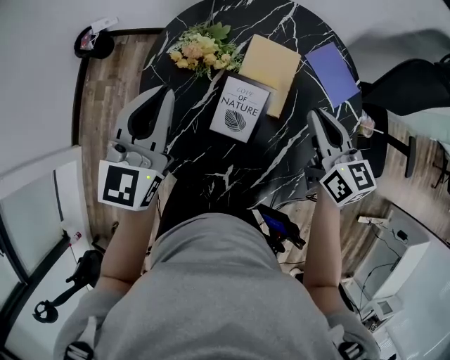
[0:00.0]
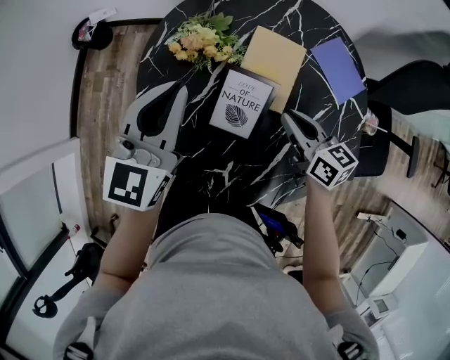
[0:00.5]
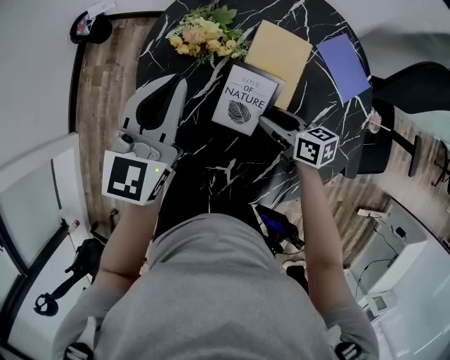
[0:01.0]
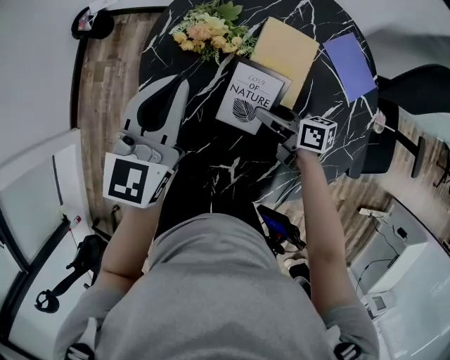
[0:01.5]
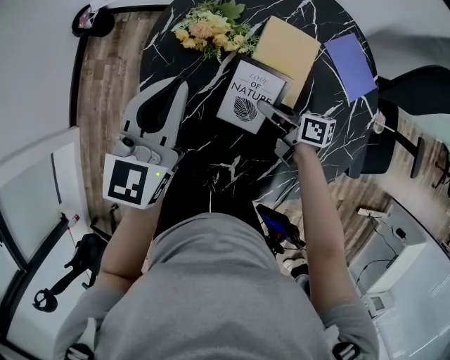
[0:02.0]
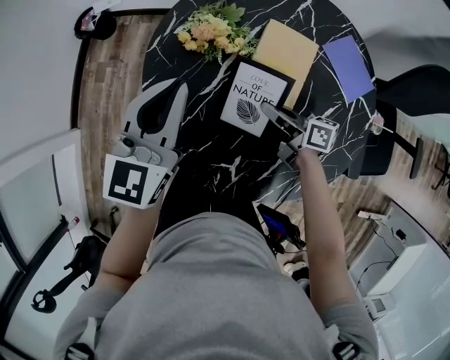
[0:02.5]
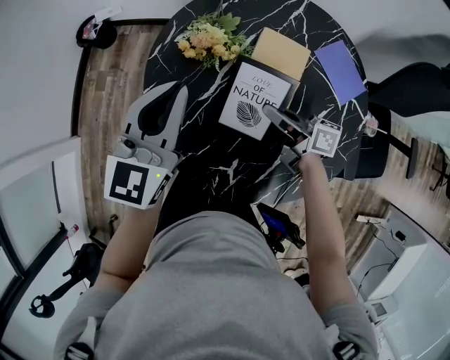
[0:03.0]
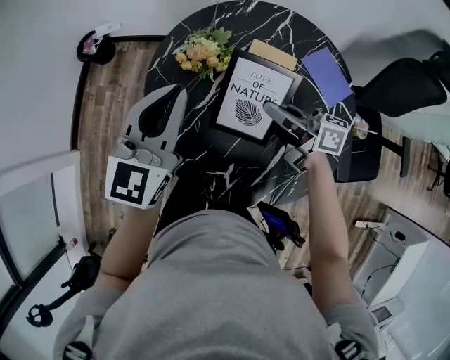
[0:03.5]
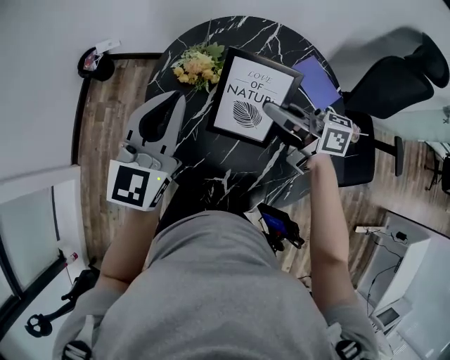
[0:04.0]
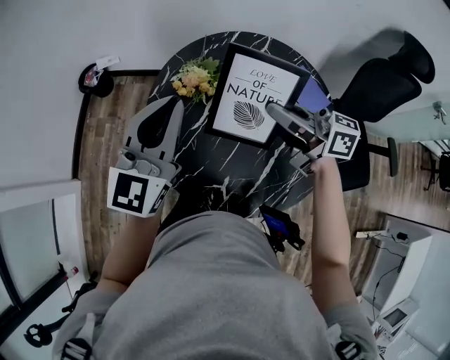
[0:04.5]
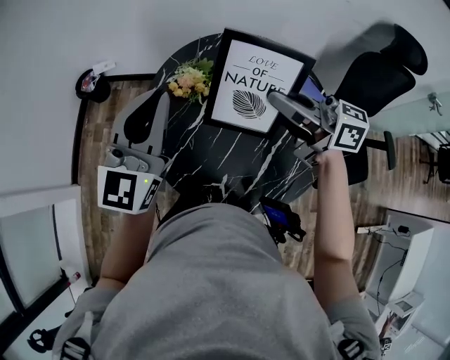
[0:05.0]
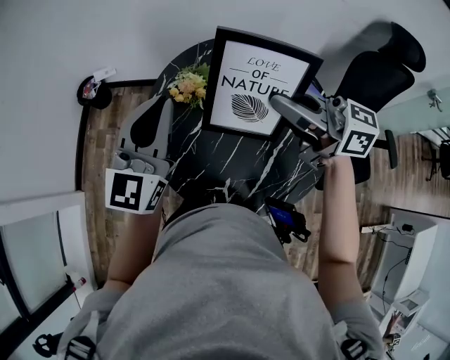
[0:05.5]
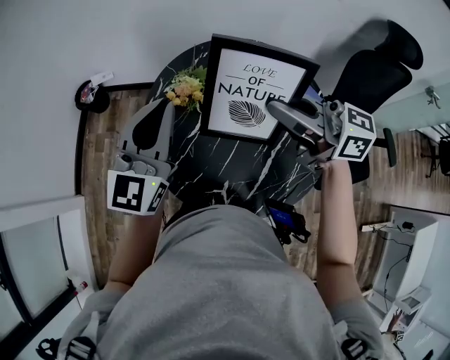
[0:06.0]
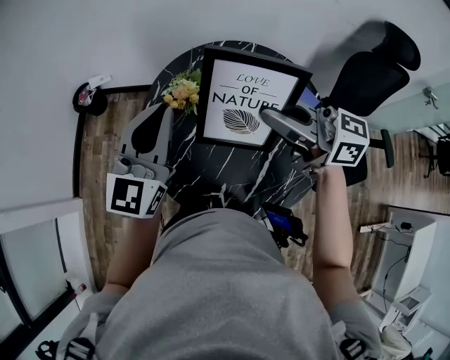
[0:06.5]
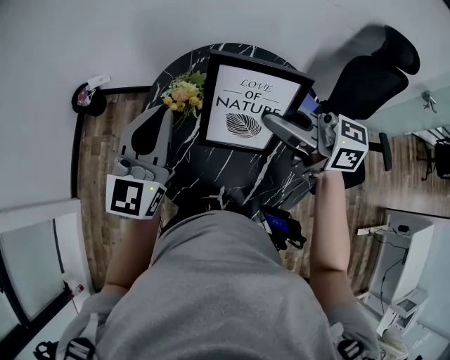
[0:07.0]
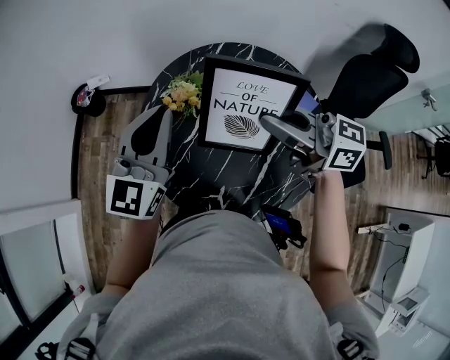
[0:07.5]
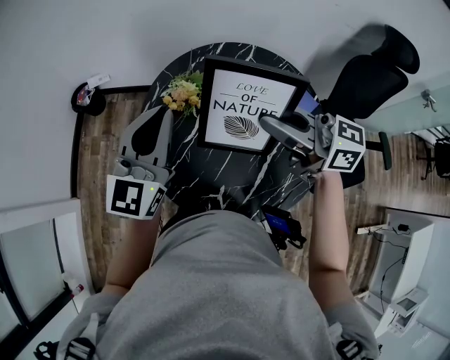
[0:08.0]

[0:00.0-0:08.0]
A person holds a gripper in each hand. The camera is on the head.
0.0 to 2.0 s: The right gripper moves downward and to the left, about 20 cm, twists about 40 degrees clockwise, seen from behind, and opens, then closes again.
2.0 to 4.0 s: The right gripper travels upward by about 25 cm, and changes its angle by approximately 30 degrees. Meanwhile the left gripper heads upward, covering some 10 cm.
4.0 to 6.0 s: The right gripper is displaced upward by about 15 cm, and rotates about 20 degrees.
6.0 to 8.0 s: The two grippers keep their place.

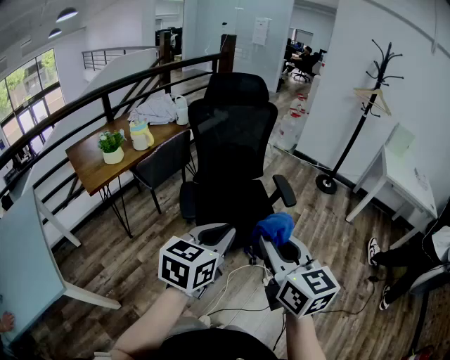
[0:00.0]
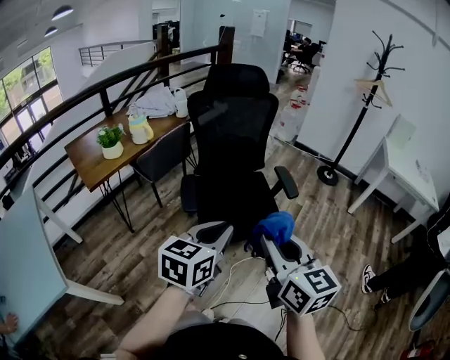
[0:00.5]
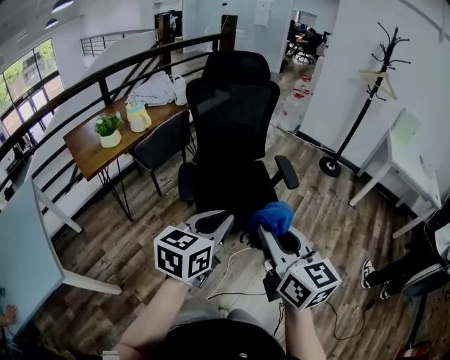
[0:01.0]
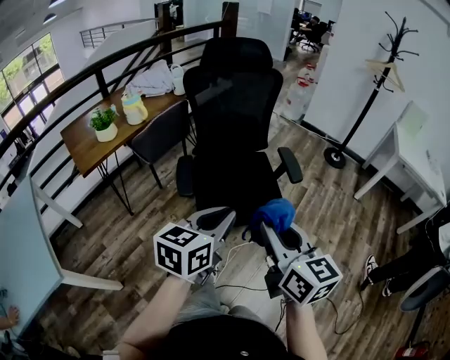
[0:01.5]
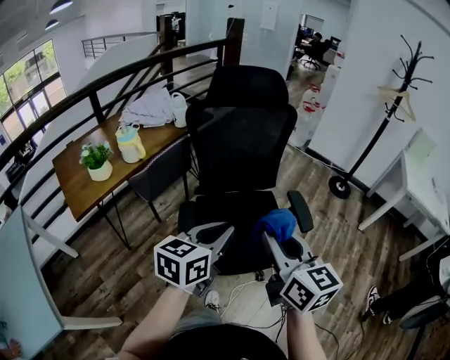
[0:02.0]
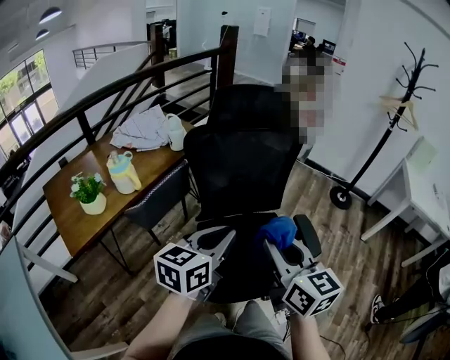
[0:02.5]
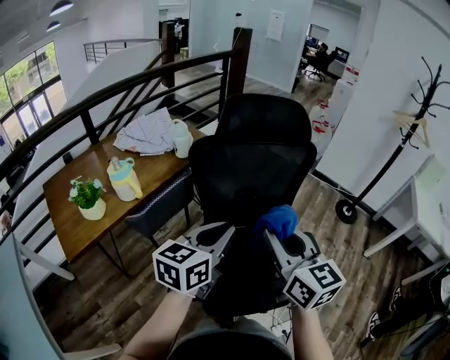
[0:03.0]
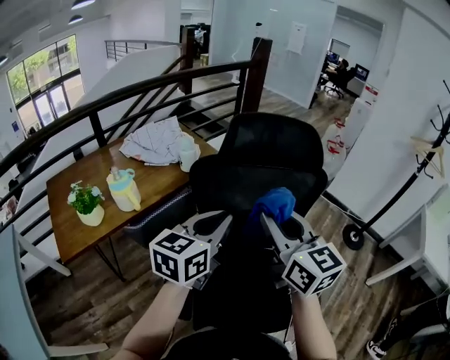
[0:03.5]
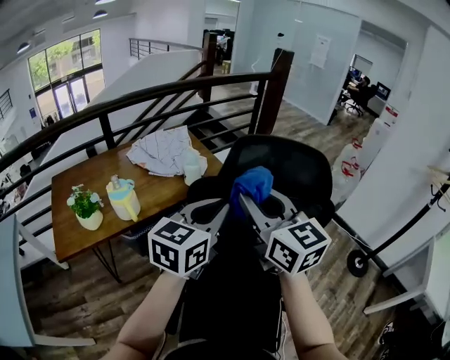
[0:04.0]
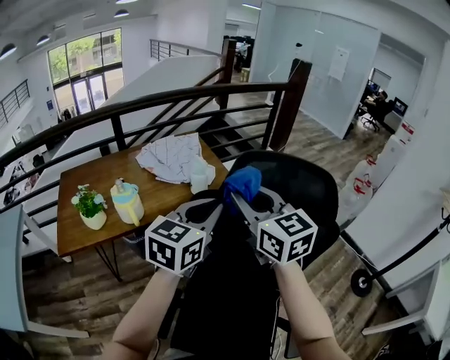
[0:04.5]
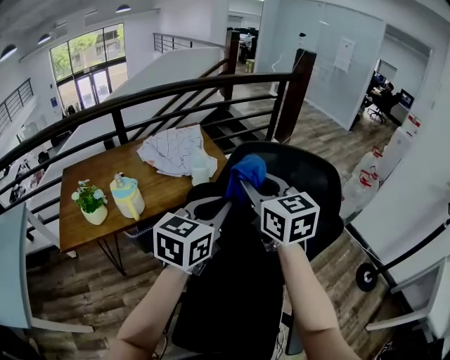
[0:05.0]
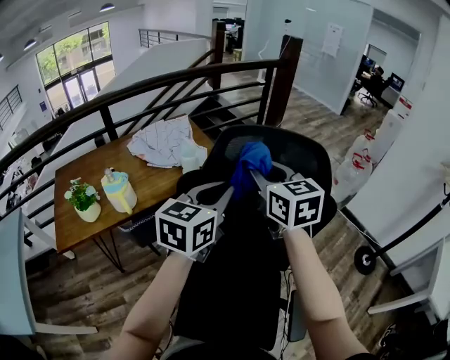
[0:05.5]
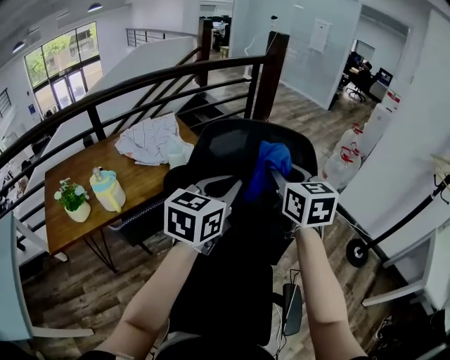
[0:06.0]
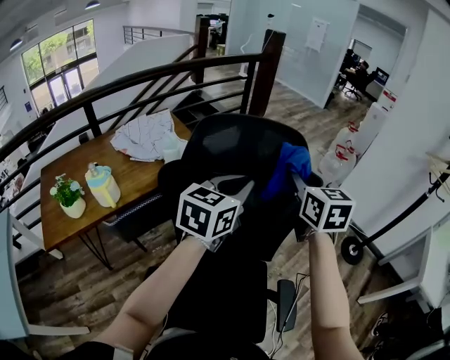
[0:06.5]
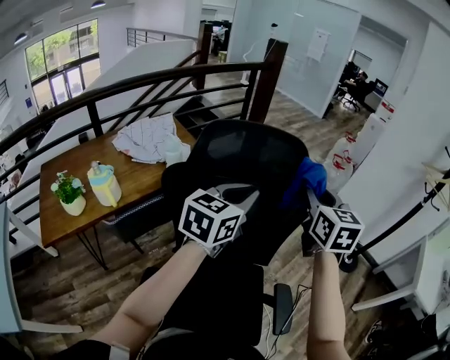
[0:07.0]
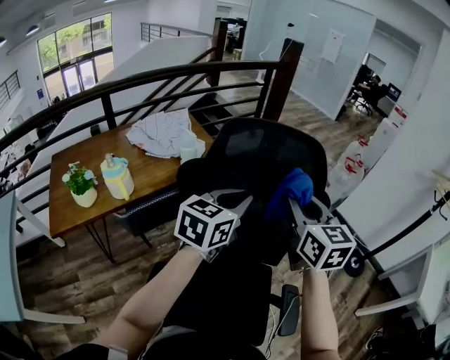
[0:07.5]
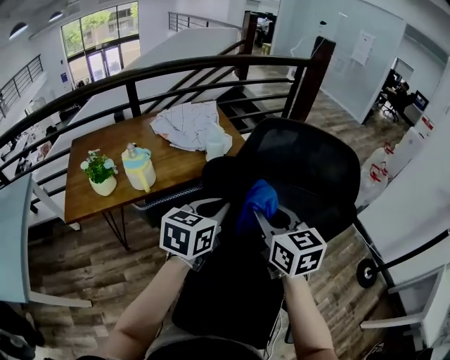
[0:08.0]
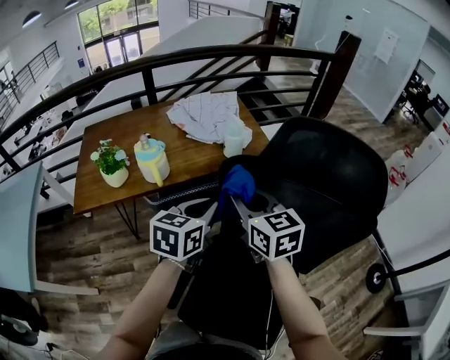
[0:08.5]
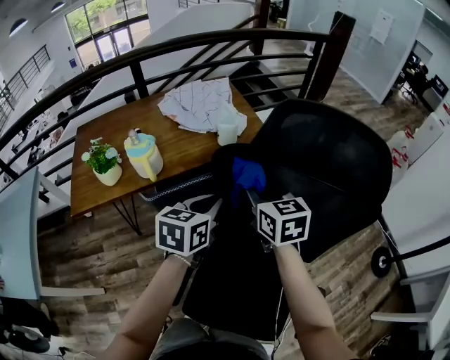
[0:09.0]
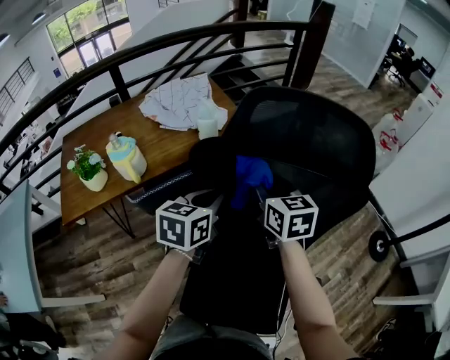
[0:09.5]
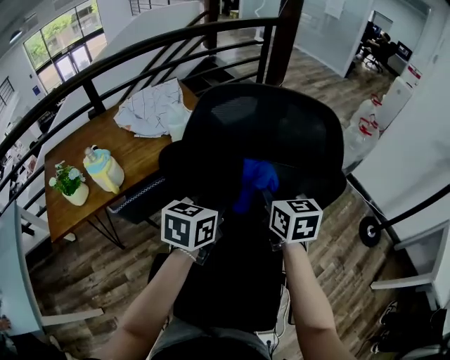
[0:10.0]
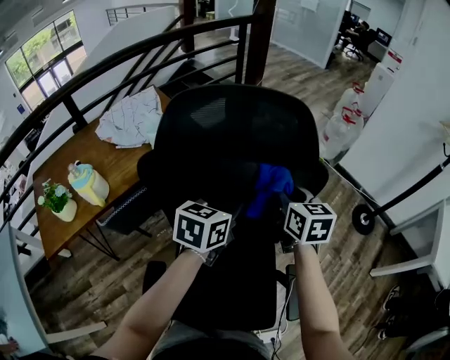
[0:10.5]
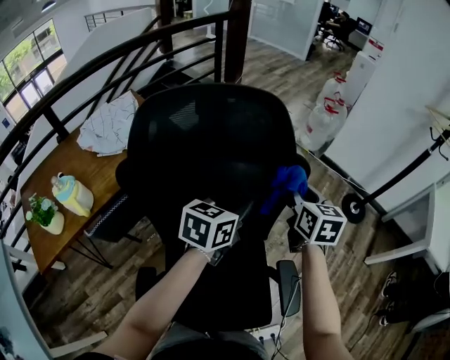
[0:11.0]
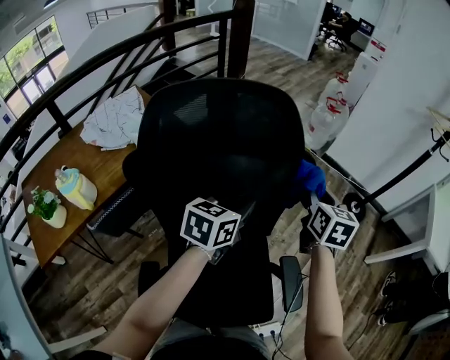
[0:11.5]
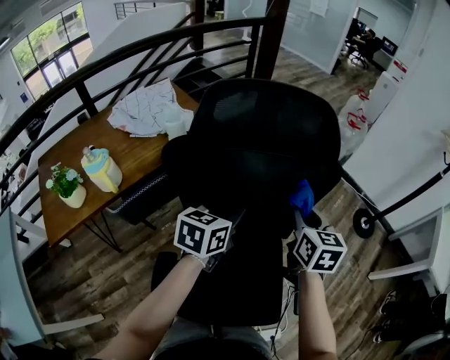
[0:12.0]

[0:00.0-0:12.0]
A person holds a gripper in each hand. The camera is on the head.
0.0 to 2.0 s: The grippers both shift forward by some 20 cm.
2.0 to 4.0 s: The grippers both shift forward by approximately 40 cm. The right gripper changes its angle by approximately 30 degrees, while the left gripper rotates about 20 degrees.
4.0 to 6.0 s: The right gripper heads to the right and forward, covering about 20 cm, and swivels approximately 20 degrees, while the left gripper shifts approximately 10 cm to the right and forward.
6.0 to 8.0 s: The right gripper moves about 20 cm. Meanwhile the left gripper changes place by roughly 15 cm.
8.0 to 10.0 s: The left gripper shifts about 10 cm to the right and downward. Meanwhile the right gripper moves to the right, downward and forward, approximately 15 cm.

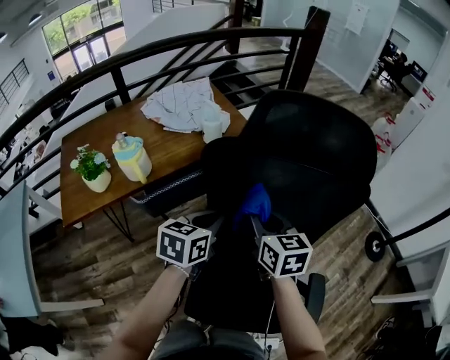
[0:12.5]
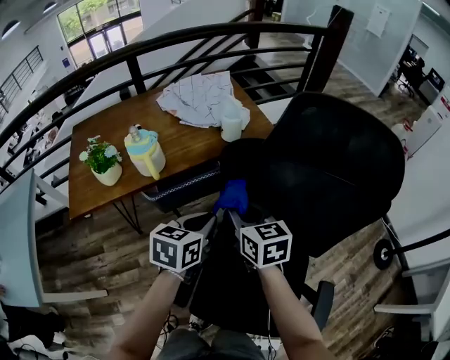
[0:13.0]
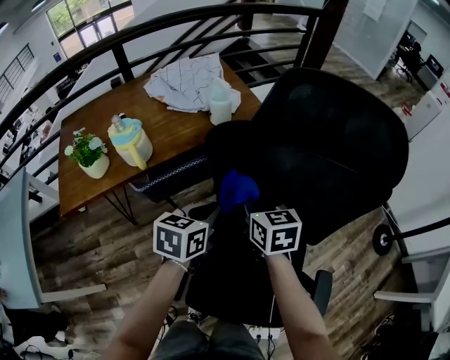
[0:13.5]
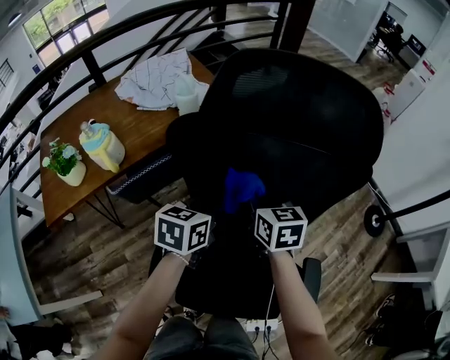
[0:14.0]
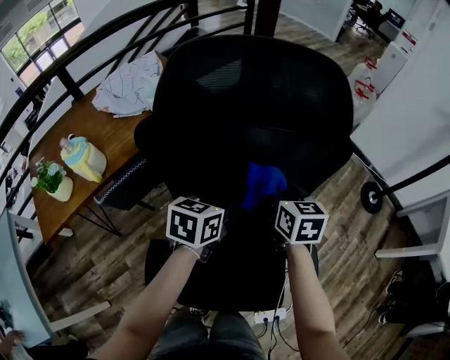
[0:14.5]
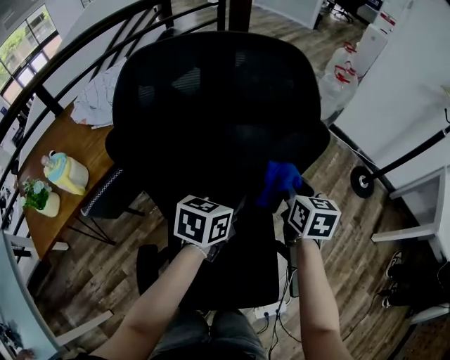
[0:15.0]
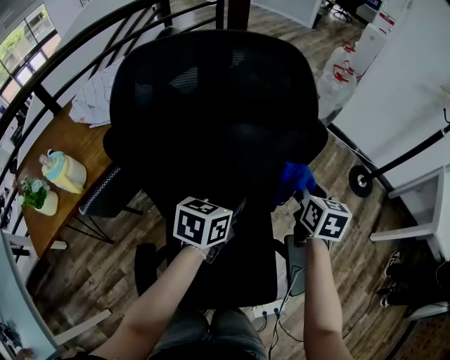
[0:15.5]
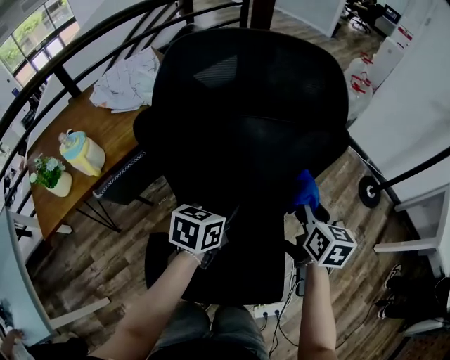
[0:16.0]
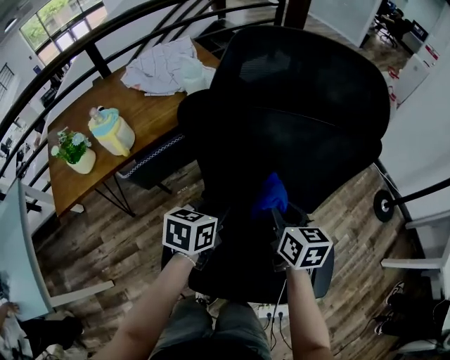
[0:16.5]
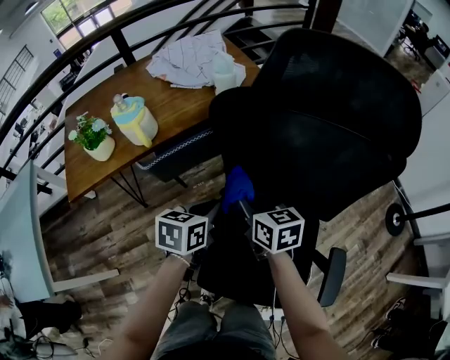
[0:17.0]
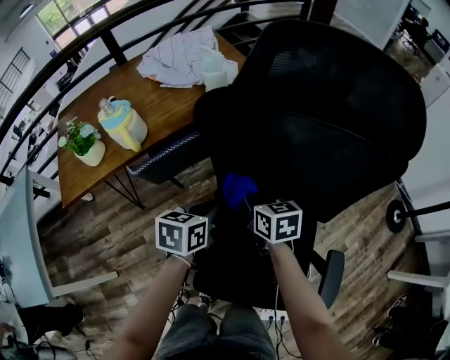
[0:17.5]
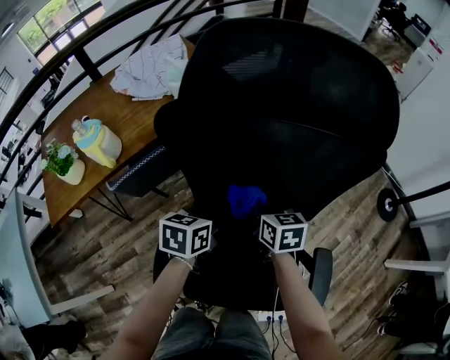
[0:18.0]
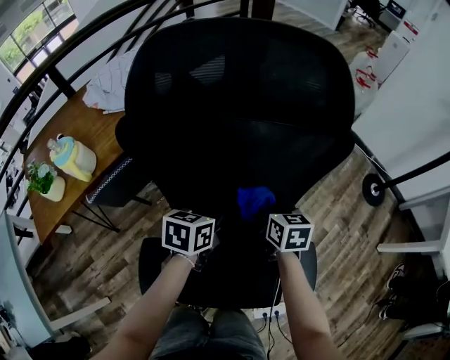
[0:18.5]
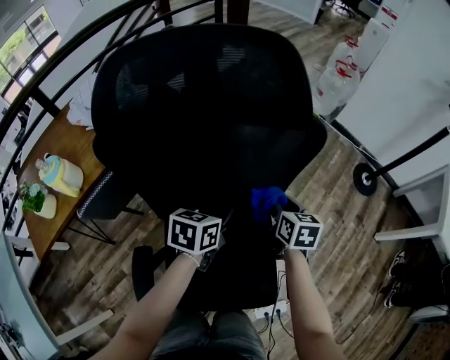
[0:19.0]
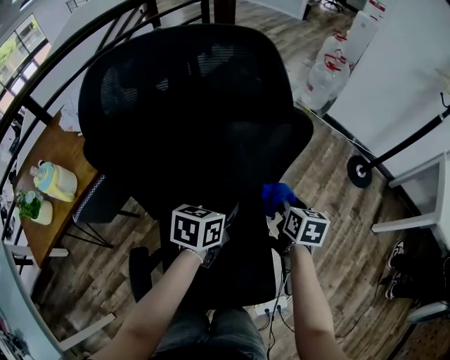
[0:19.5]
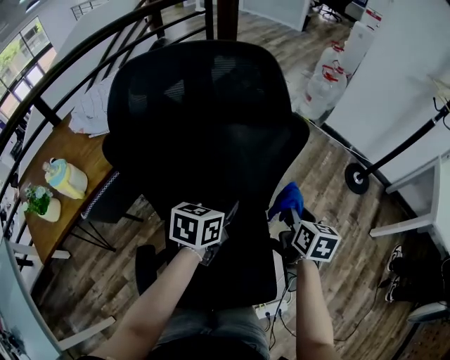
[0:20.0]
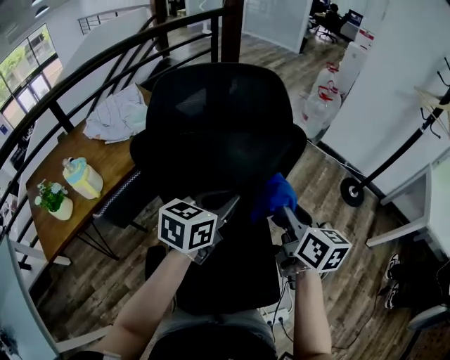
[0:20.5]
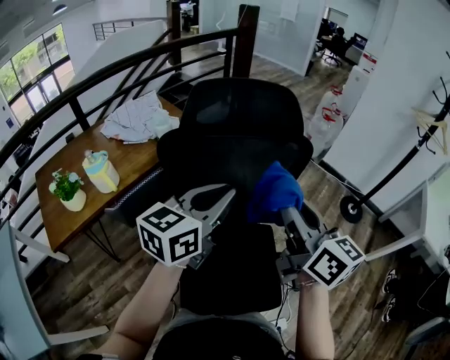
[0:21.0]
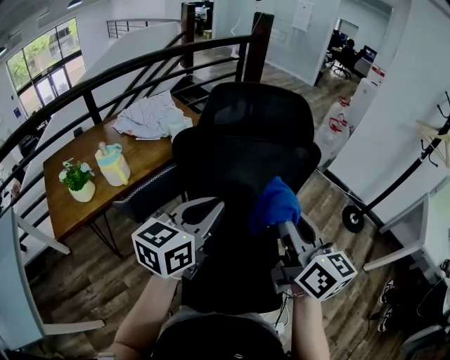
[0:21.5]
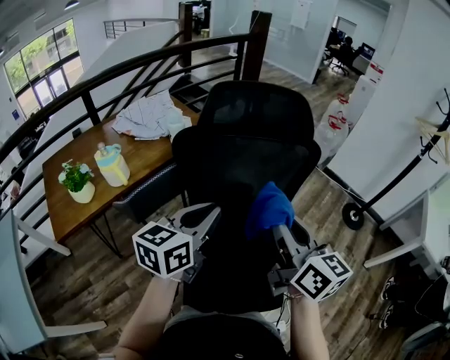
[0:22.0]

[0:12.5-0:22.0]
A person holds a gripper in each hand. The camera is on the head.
12.5 to 14.5 s: The right gripper ends up roughly 20 cm from where it was, while the left gripper moves approximately 15 cm.
14.5 to 16.5 s: The right gripper heads backward, covering roughly 10 cm, and travels to the right and back again, some 15 cm each way. The left gripper heads backward and to the left, covering some 10 cm.
16.5 to 18.0 s: The left gripper reaches about 10 cm to the left, then returns, while the right gripper travels downward and forward by roughly 10 cm, and travels to the left and back again, some 15 cm each way.
18.0 to 20.0 s: The left gripper shifts by approximately 20 cm, and turns by some 20 degrees. Meanwhile the right gripper shifts by about 30 cm, and turns by roughly 30 degrees.
20.0 to 22.0 s: Both grippers move upward, backward and to the left, about 30 cm. The left gripper rotates about 30 degrees; the right gripper tilts its fingers some 40 degrees upward.
